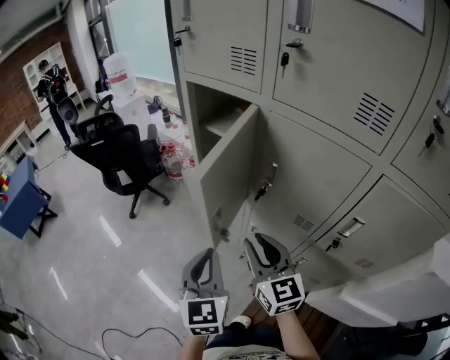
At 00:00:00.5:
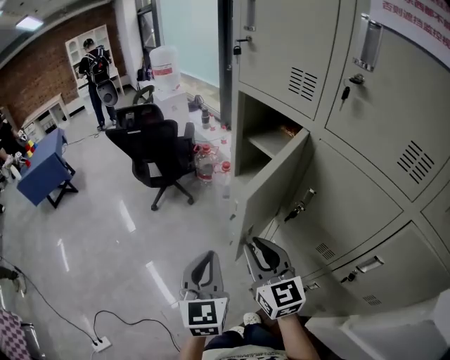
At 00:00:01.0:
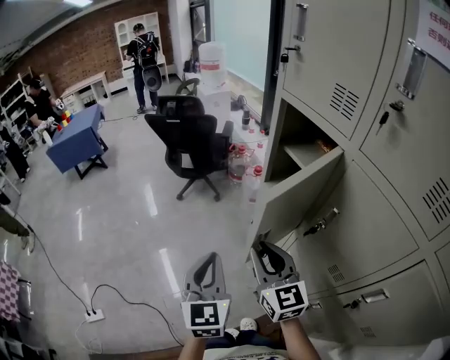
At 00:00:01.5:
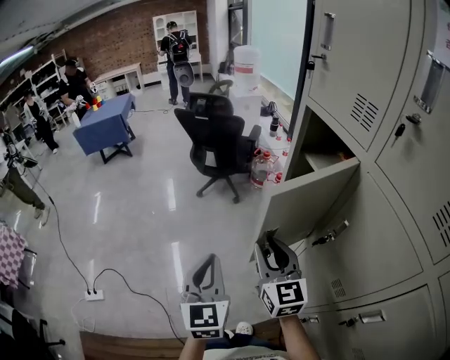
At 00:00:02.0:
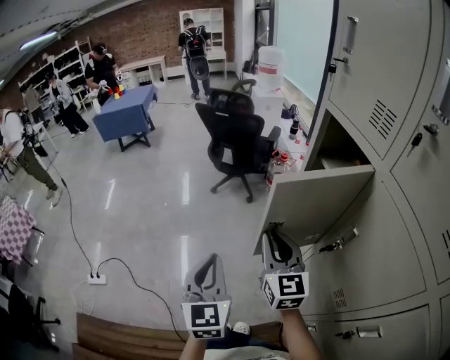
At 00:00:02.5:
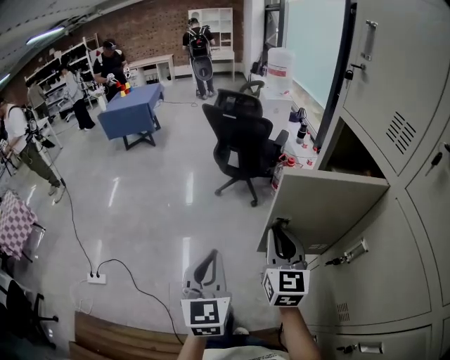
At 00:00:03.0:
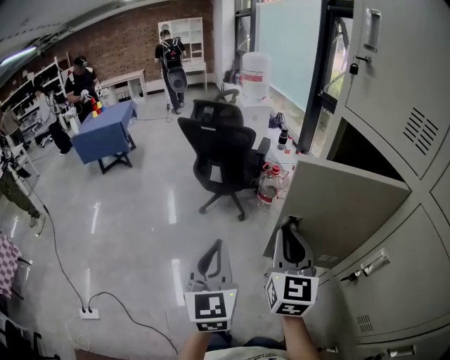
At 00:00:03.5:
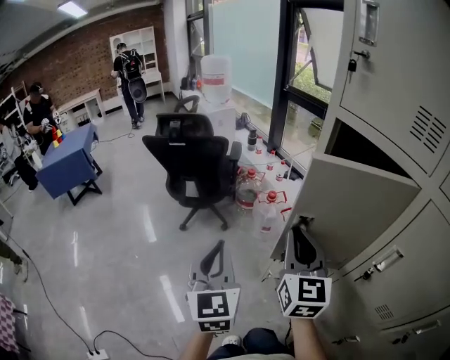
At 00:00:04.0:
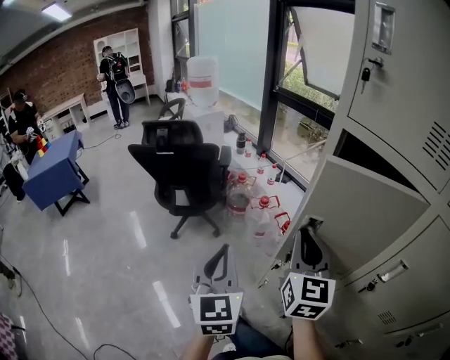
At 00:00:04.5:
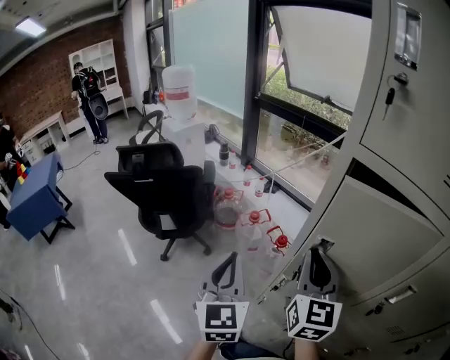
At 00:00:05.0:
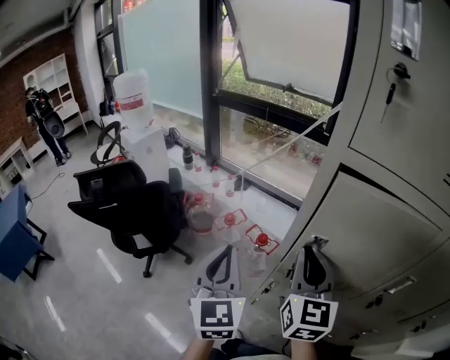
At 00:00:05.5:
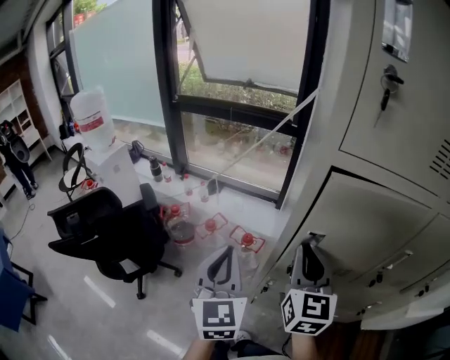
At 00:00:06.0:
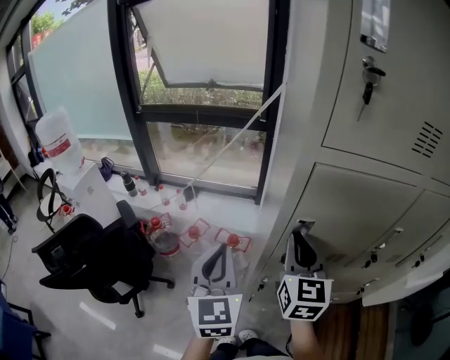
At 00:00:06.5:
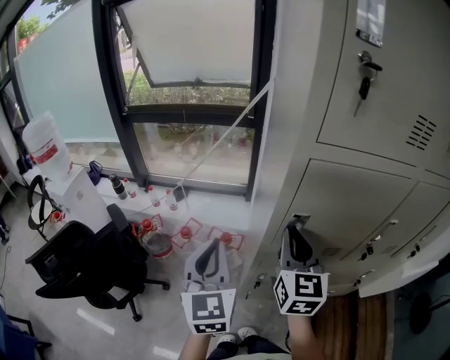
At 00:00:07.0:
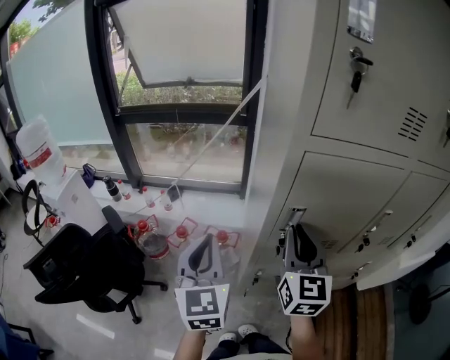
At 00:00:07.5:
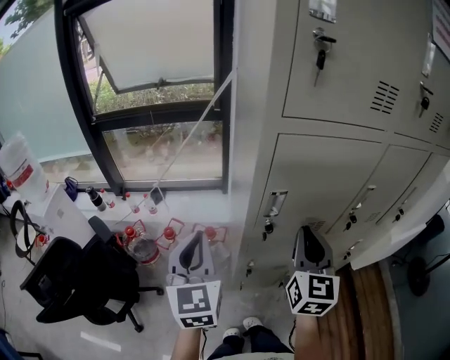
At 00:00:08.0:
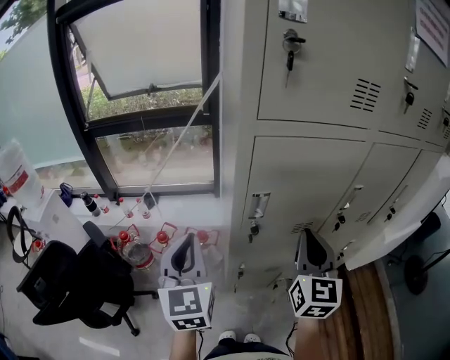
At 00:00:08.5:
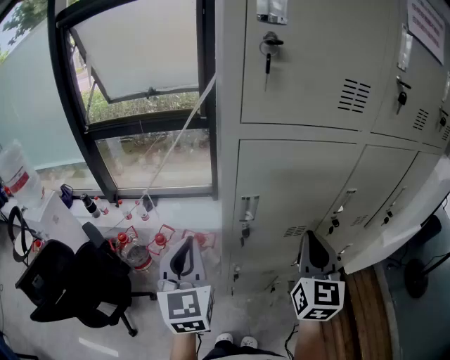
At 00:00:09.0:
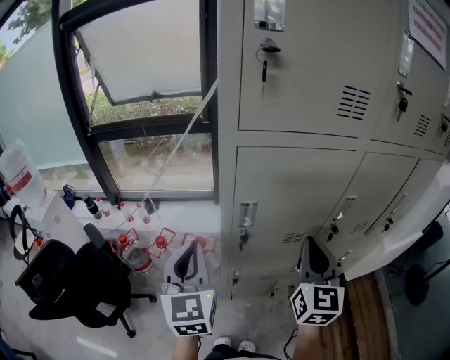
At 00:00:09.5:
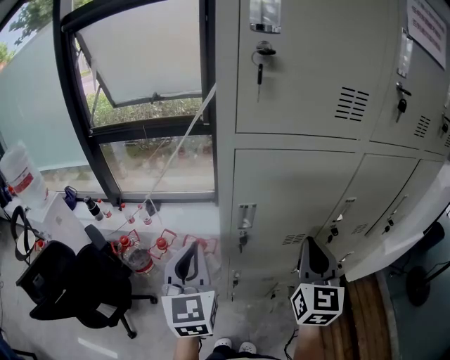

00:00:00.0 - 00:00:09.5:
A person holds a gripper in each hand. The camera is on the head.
00:00:00.0 - 00:00:02.0: The right gripper changes place by about 15 cm, and swivels approximately 30 degrees. Meanwhile the left gripper ends up some 10 cm from where it was, and changes its angle by roughly 40 degrees.
00:00:02.0 - 00:00:04.0: The left gripper moves about 30 cm, and swivels about 30 degrees. Meanwhile the right gripper ends up some 20 cm from where it was, and changes its angle by roughly 40 degrees.
00:00:04.0 - 00:00:05.5: The left gripper changes place by approximately 20 cm, and swivels about 40 degrees, while the right gripper moves some 10 cm, and turns by about 30 degrees.
00:00:05.5 - 00:00:07.5: The right gripper shifts some 5 cm to the right, and swivels roughly 20 degrees.
00:00:07.5 - 00:00:09.5: Both grippers move to the right, about 5 cm.

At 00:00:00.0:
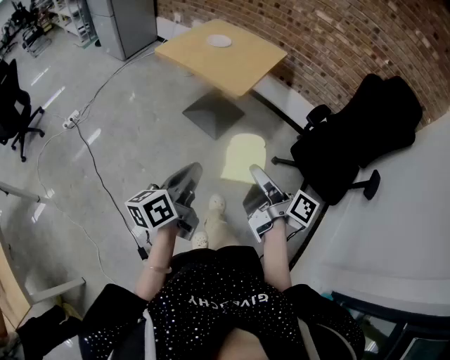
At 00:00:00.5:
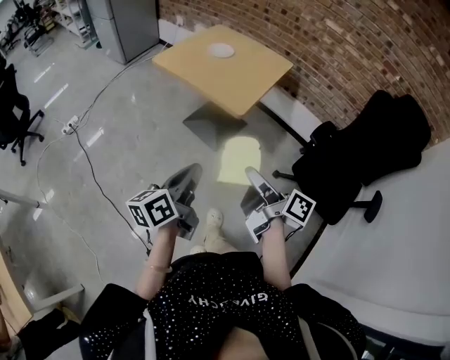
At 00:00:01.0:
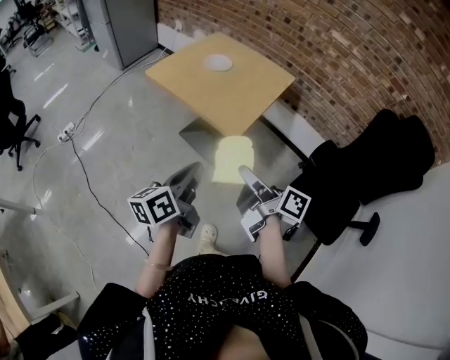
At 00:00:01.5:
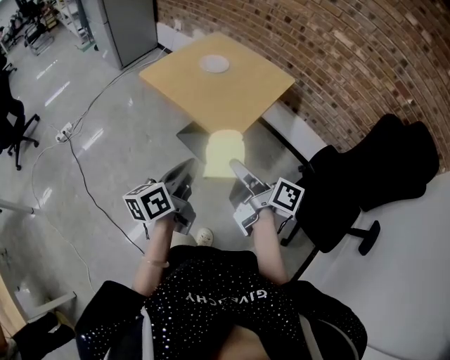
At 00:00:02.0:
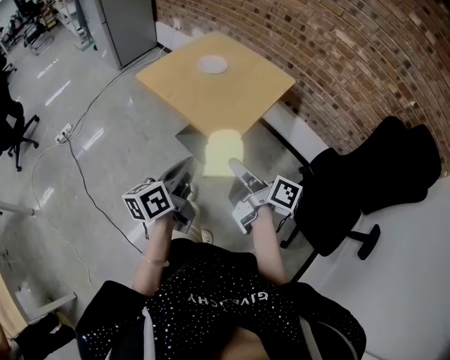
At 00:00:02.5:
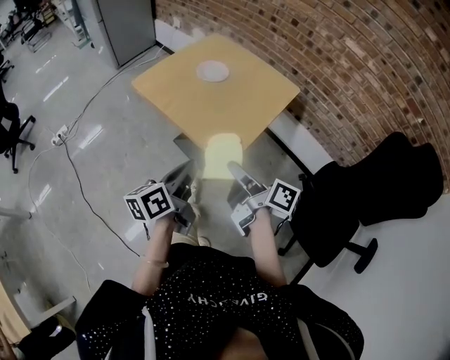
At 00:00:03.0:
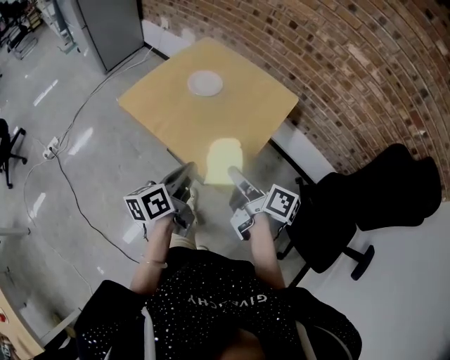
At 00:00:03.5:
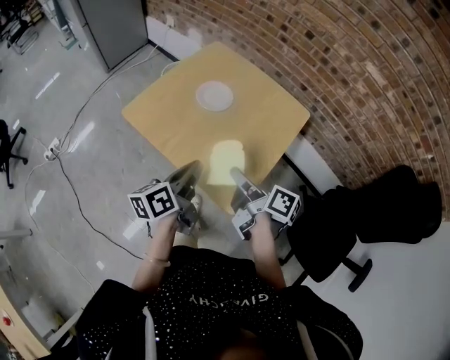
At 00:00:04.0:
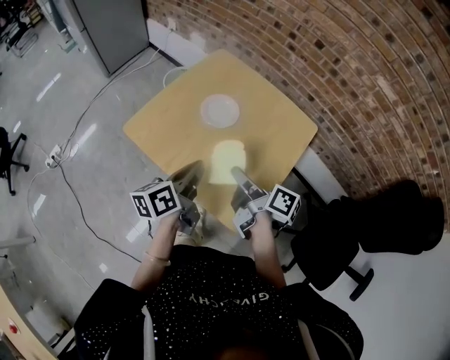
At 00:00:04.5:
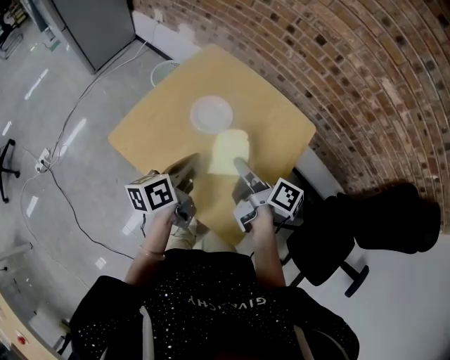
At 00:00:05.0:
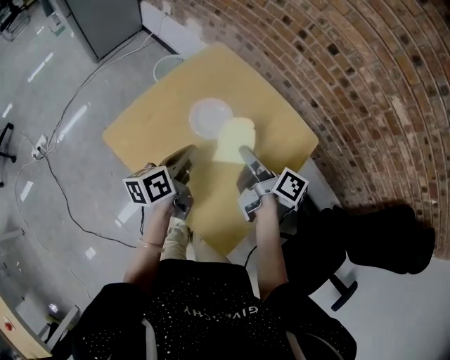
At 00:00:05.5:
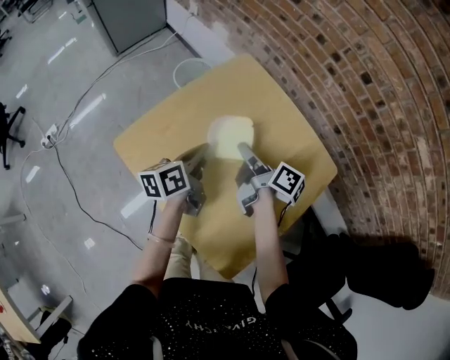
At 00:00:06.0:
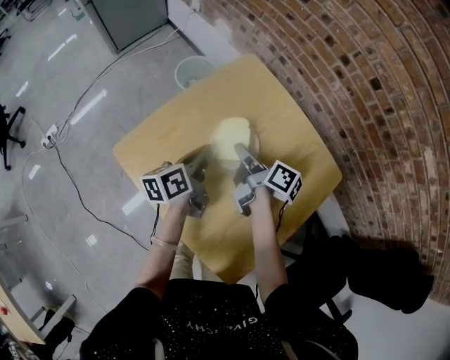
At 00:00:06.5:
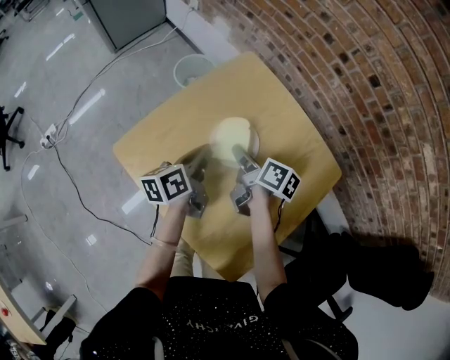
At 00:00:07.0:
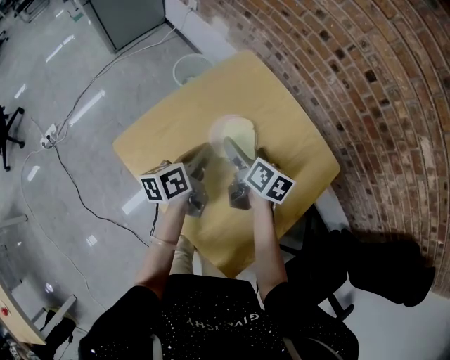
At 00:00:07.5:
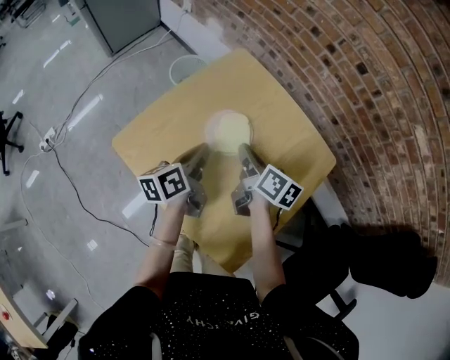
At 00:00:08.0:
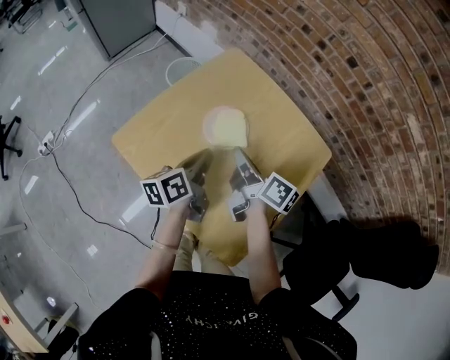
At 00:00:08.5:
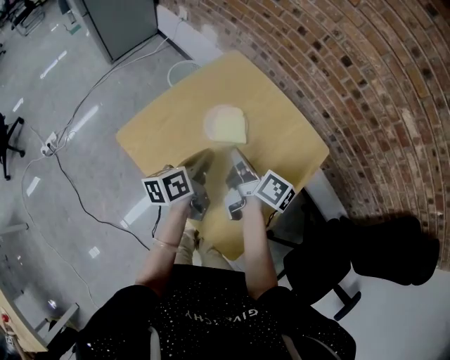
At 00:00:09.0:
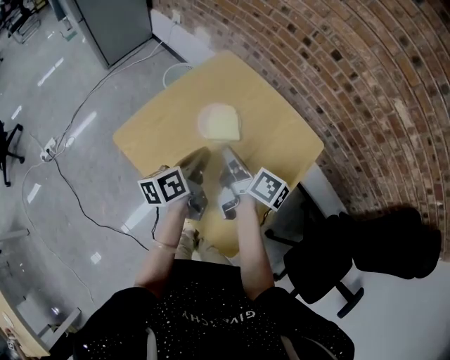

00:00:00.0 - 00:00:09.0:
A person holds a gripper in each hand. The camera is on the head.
00:00:00.0 - 00:00:02.0: Both grippers travel together forward, some 30 cm.
00:00:02.0 - 00:00:04.5: The two grippers travel together, forward, roughly 40 cm.
00:00:04.5 - 00:00:07.0: Both grippers travel together forward and downward, some 20 cm. The right gripper turns by some 40 degrees, and opens.
00:00:07.0 - 00:00:09.0: The left gripper travels backward by some 10 cm; the right gripper is displaced backward and upward by approximately 15 cm, turns by about 30 degrees, and closes its fingers.

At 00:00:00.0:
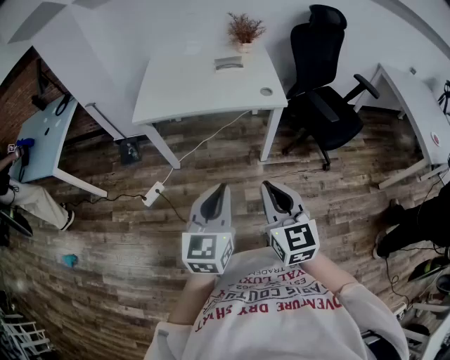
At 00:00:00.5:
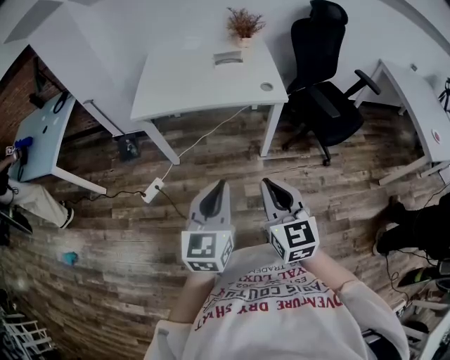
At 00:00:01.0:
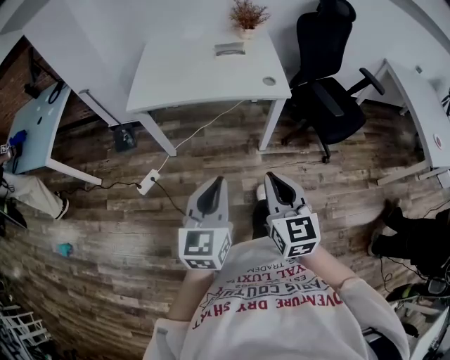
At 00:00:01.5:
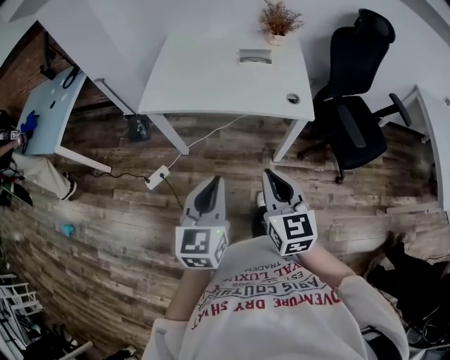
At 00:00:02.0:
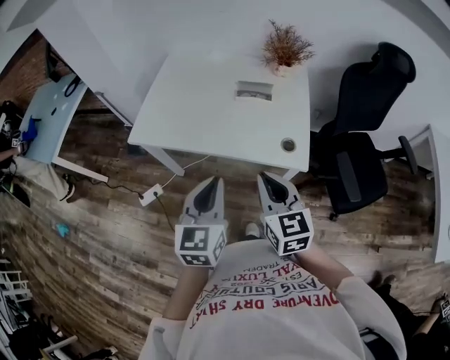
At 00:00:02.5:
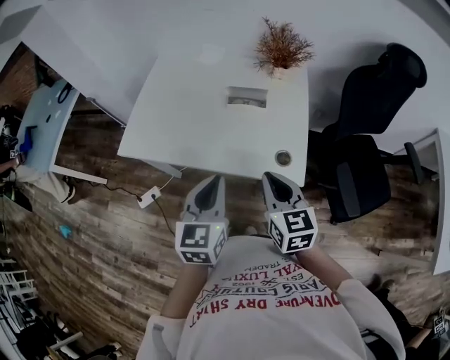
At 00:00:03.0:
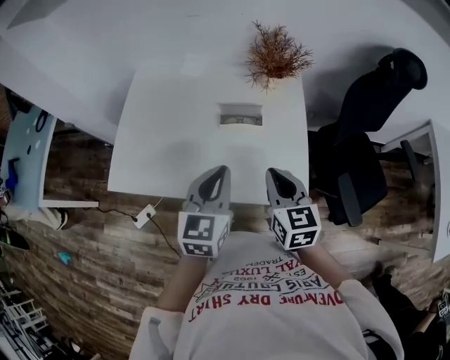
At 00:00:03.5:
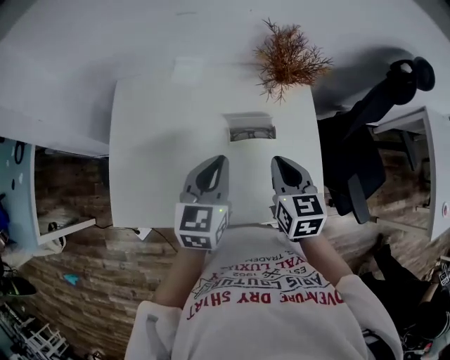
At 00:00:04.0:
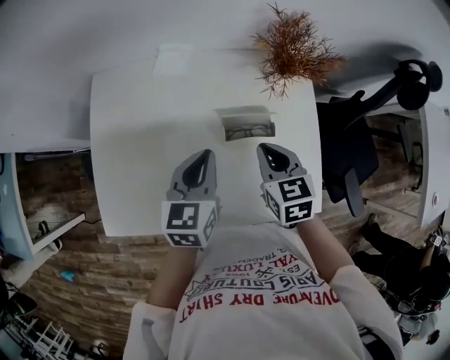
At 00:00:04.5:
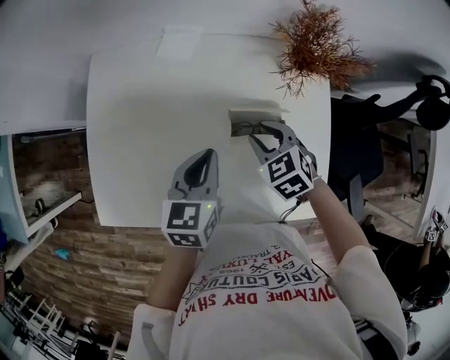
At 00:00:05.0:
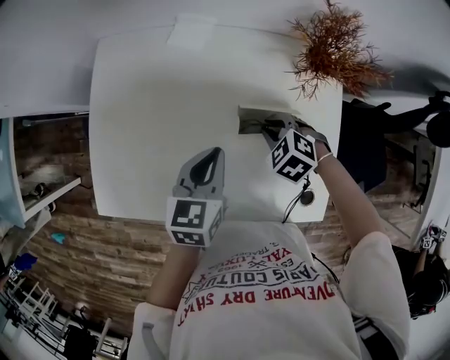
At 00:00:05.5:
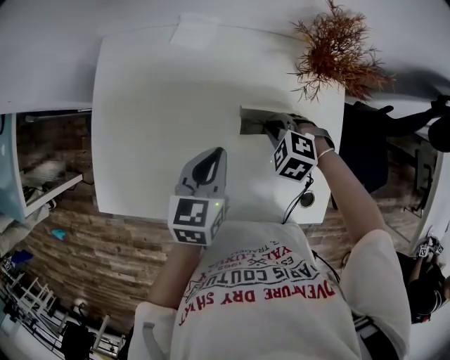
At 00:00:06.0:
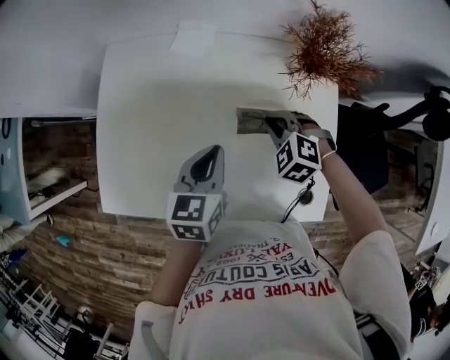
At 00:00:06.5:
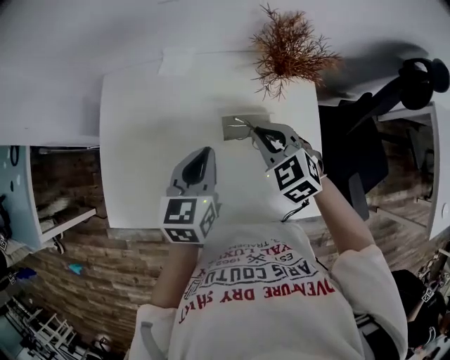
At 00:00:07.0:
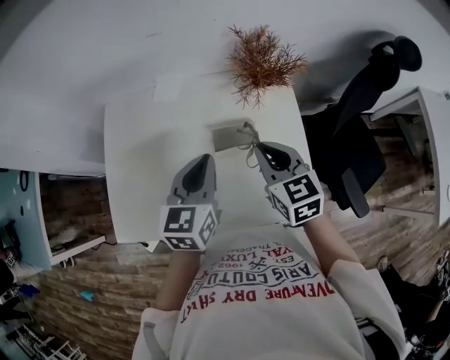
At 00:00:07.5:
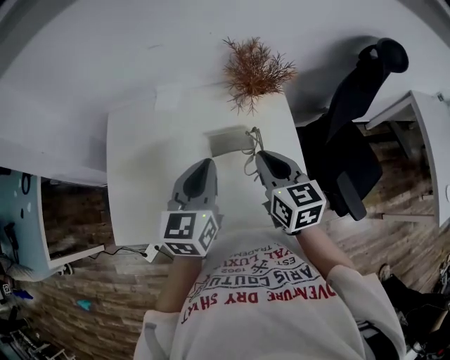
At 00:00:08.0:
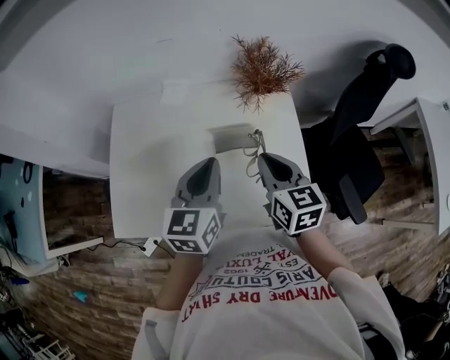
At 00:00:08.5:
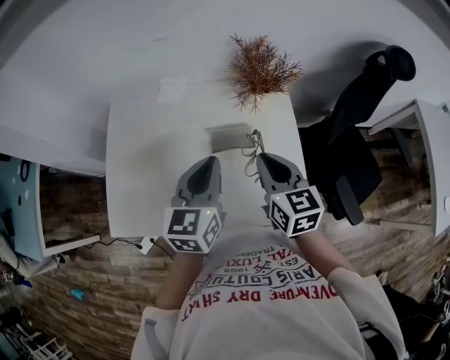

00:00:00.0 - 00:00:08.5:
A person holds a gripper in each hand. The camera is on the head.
00:00:00.0 - 00:00:02.0: The two grippers go approximately 30 cm forward.
00:00:02.0 - 00:00:04.0: The grippers both shift forward by approximately 40 cm. The right gripper rotates about 30 degrees, while the left gripper rotates about 20 degrees.
00:00:04.0 - 00:00:06.5: The right gripper moves approximately 10 cm downward and comes back, turns by roughly 30 degrees, and opens, then closes once more.
00:00:06.5 - 00:00:08.5: The left gripper heads upward and to the right, covering some 10 cm, while the right gripper is displaced backward, upward and to the right by roughly 15 cm, and turns by about 40 degrees.
